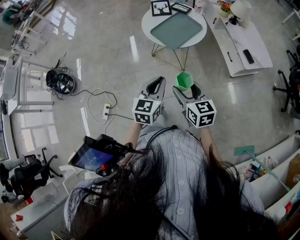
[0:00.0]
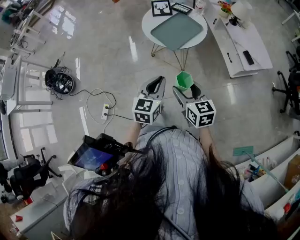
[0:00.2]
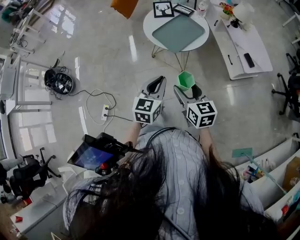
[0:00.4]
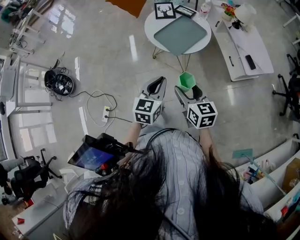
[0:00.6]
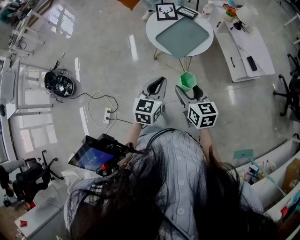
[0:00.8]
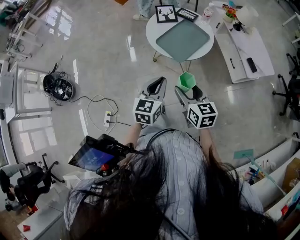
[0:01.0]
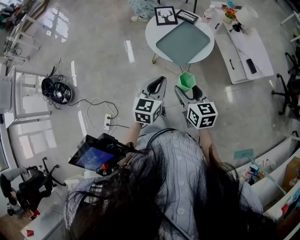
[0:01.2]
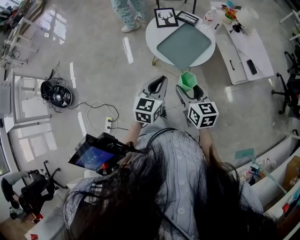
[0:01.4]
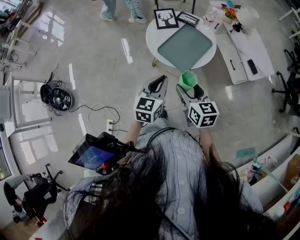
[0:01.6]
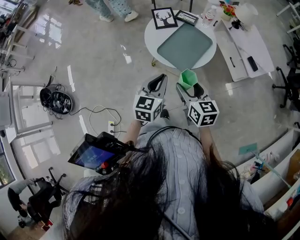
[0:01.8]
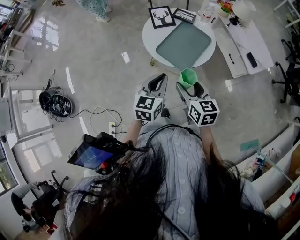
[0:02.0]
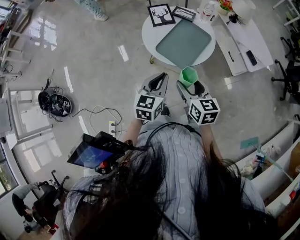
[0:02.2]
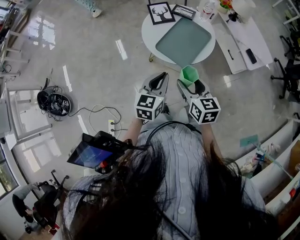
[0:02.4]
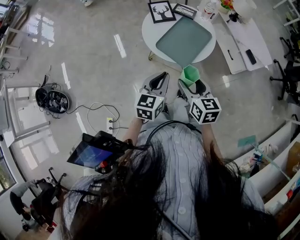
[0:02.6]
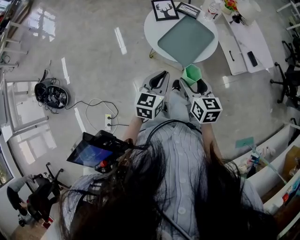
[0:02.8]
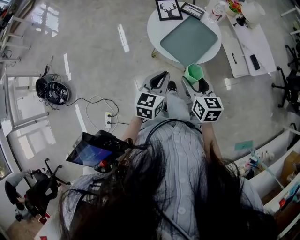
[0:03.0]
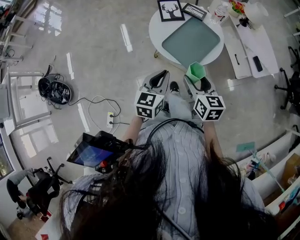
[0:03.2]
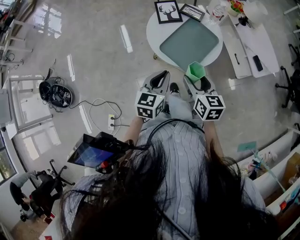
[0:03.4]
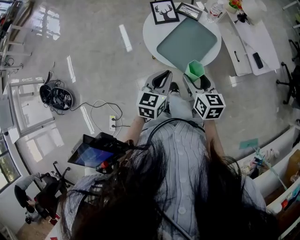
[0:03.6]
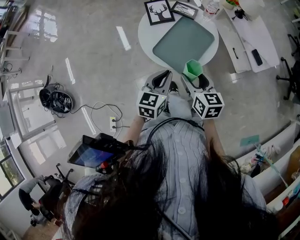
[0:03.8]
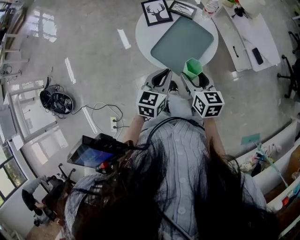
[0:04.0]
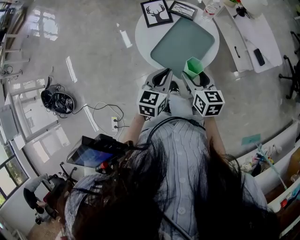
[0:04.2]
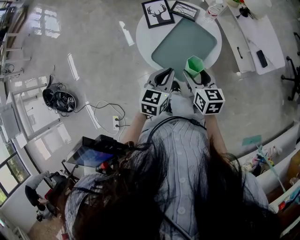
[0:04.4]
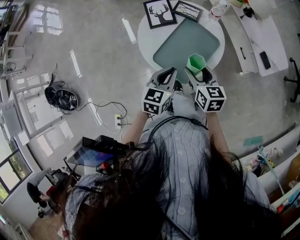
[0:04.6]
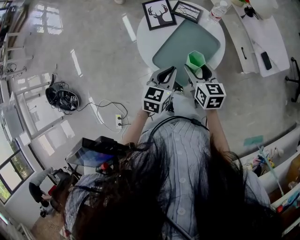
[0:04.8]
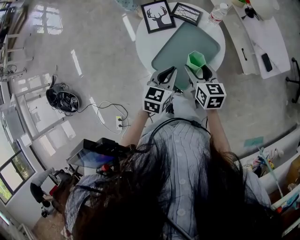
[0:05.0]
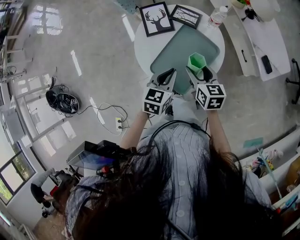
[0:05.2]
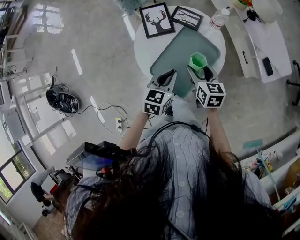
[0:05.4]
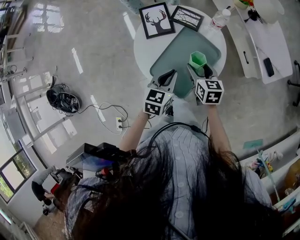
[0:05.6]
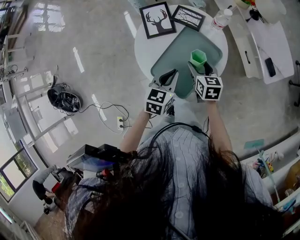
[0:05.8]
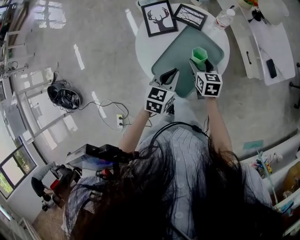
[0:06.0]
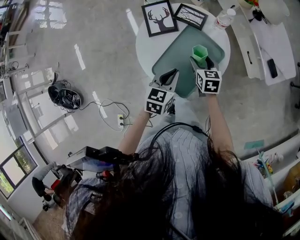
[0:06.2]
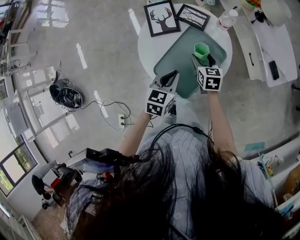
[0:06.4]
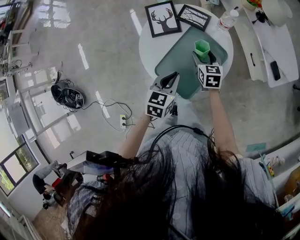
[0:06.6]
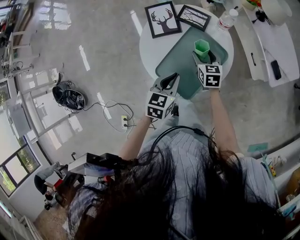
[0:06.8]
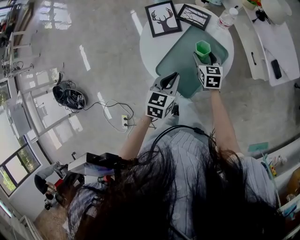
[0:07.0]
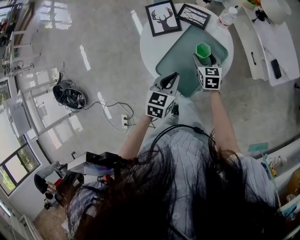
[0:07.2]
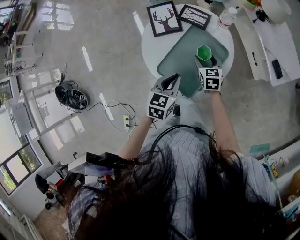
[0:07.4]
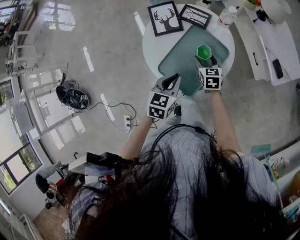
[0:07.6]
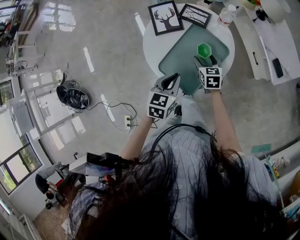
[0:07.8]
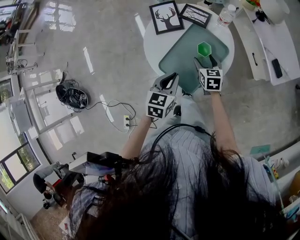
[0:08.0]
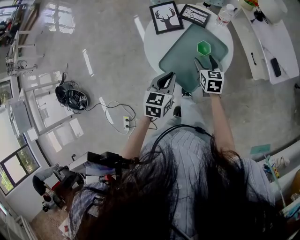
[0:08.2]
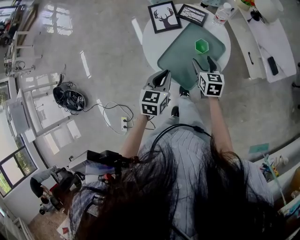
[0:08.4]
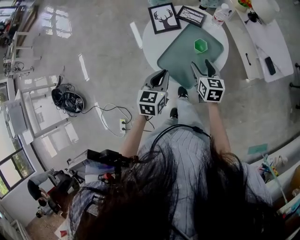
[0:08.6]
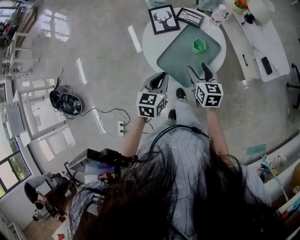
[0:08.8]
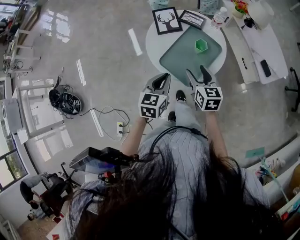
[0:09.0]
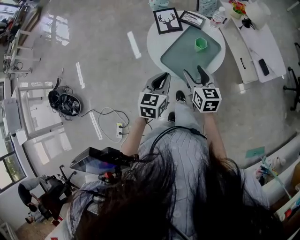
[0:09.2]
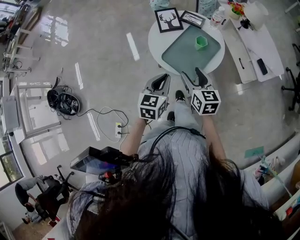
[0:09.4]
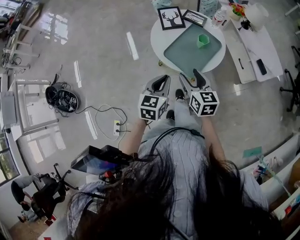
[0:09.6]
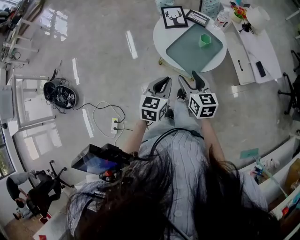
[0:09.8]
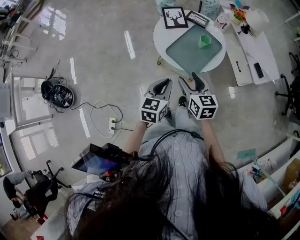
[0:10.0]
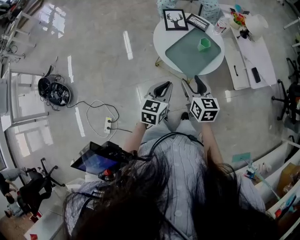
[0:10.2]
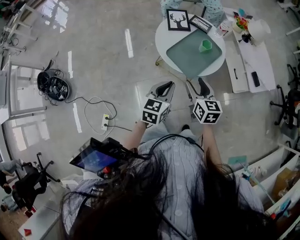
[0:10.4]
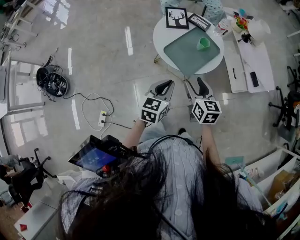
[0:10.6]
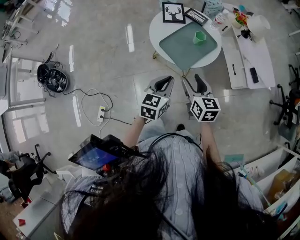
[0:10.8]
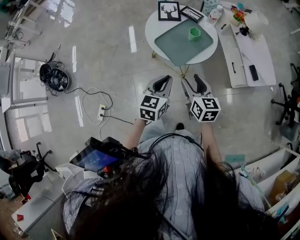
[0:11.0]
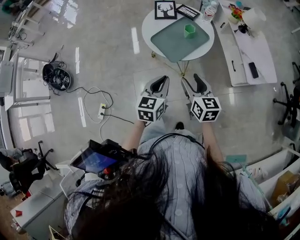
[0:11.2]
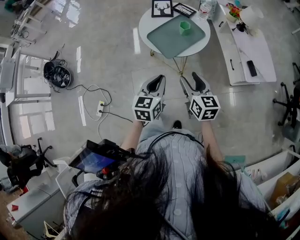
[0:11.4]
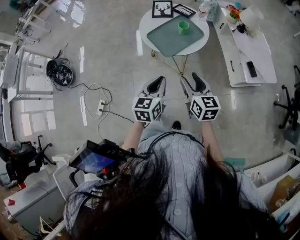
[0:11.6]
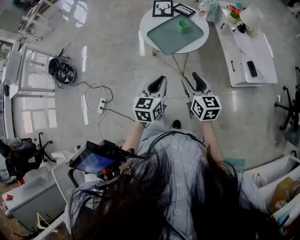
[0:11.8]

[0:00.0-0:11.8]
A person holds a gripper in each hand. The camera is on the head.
0.0 to 1.4 s: Both grippers travel together forward, about 15 cm.
1.4 to 3.0 s: The right gripper moves forward, about 5 cm. Meanwhile the left gripper moves about 5 cm.
3.0 to 4.4 s: The left gripper goes some 15 cm forward and to the right, while the right gripper is displaced forward by some 15 cm.
4.4 to 6.0 s: The left gripper heads forward and downward, covering about 10 cm; the right gripper shifts some 20 cm forward and downward.
6.0 to 7.4 s: There are only small adjustments of the grippers.
7.4 to 8.8 s: The right gripper travels backward and upward by some 15 cm; the left gripper moves backward and to the left, some 10 cm.
8.8 to 10.4 s: The right gripper shifts roughly 15 cm backward and upward, while the left gripper heads backward, covering roughly 15 cm.
10.4 to 11.8 s: The grippers both shift to the right and backward by roughly 20 cm.

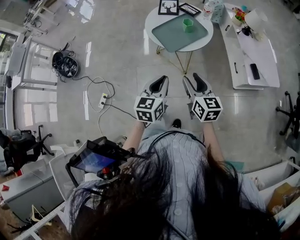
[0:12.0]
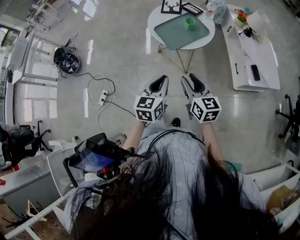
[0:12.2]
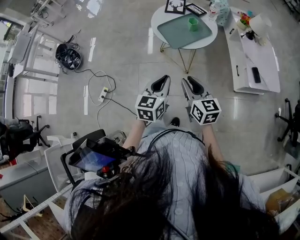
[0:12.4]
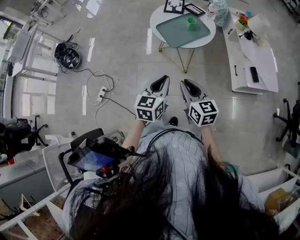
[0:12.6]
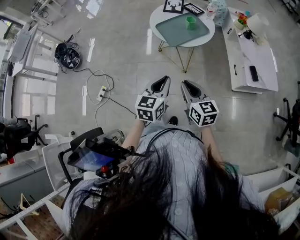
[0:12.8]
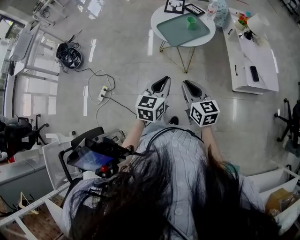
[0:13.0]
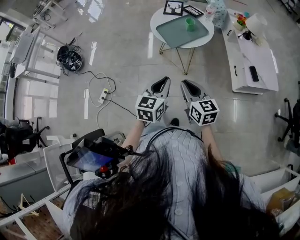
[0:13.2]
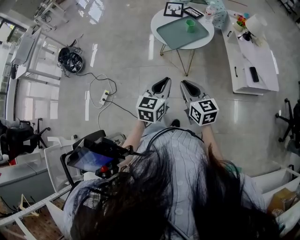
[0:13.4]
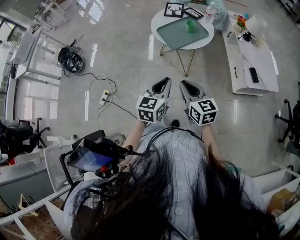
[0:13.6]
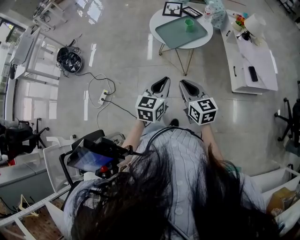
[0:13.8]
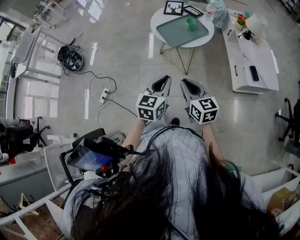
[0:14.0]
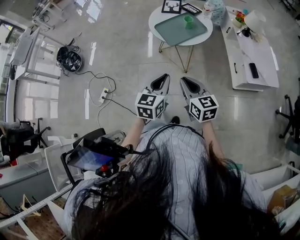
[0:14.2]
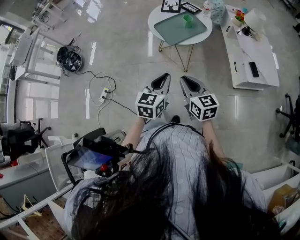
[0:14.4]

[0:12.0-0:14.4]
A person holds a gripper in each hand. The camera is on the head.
12.0 to 13.2 s: The grippers both shift backward by approximately 10 cm. The right gripper closes up.
13.2 to 14.4 s: Neither gripper changes place.

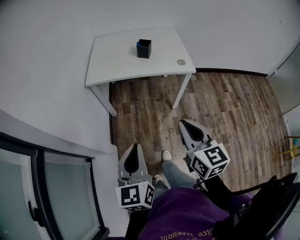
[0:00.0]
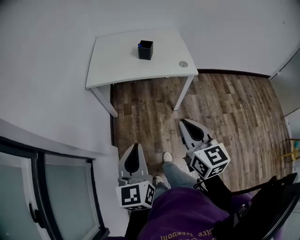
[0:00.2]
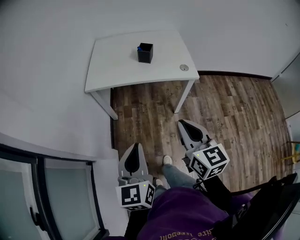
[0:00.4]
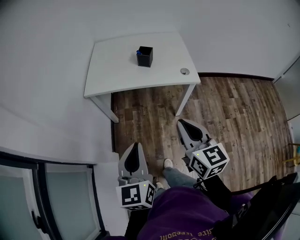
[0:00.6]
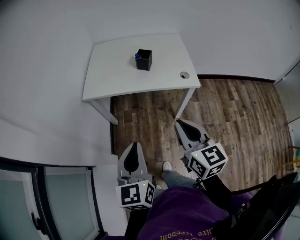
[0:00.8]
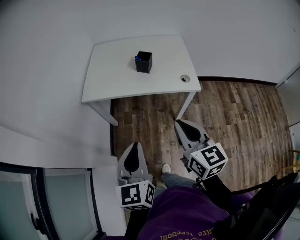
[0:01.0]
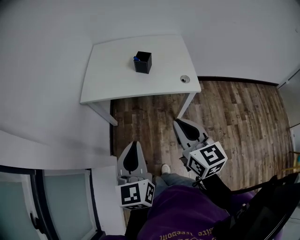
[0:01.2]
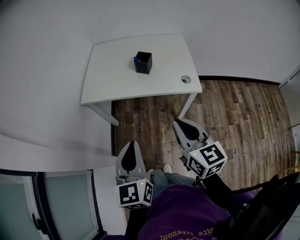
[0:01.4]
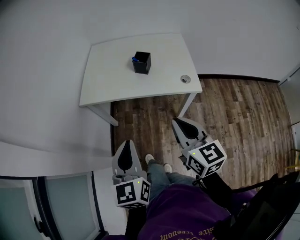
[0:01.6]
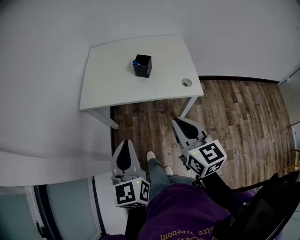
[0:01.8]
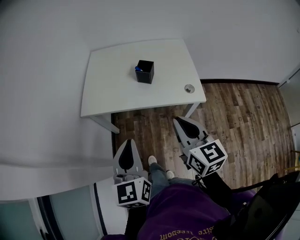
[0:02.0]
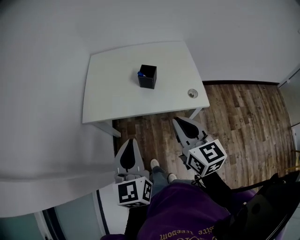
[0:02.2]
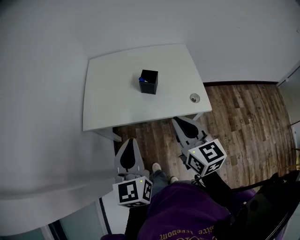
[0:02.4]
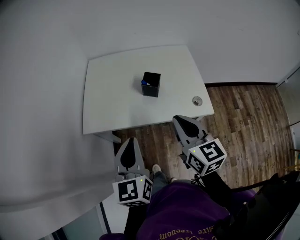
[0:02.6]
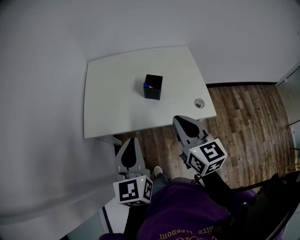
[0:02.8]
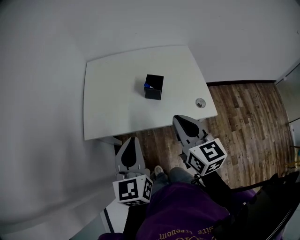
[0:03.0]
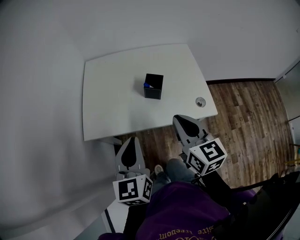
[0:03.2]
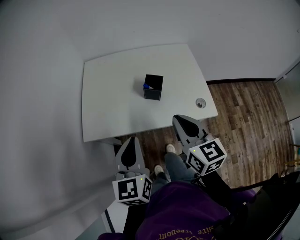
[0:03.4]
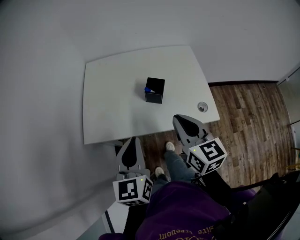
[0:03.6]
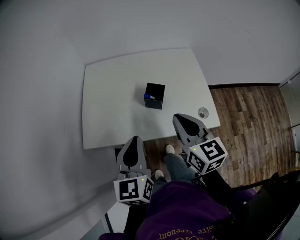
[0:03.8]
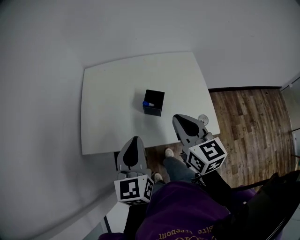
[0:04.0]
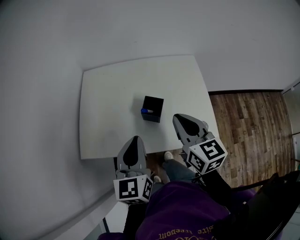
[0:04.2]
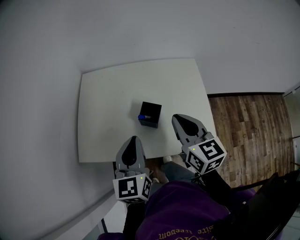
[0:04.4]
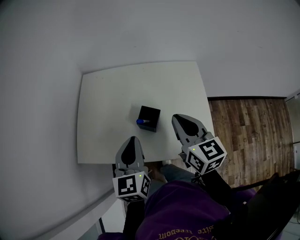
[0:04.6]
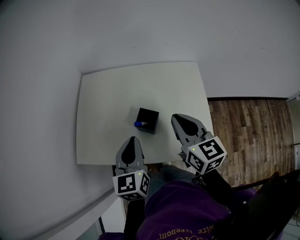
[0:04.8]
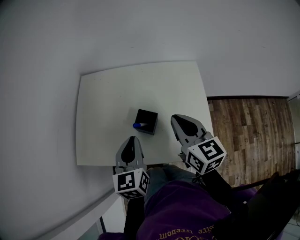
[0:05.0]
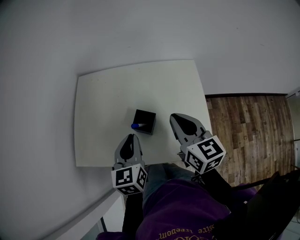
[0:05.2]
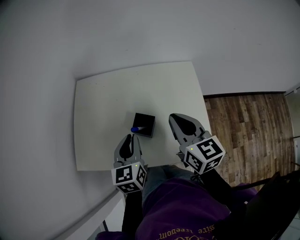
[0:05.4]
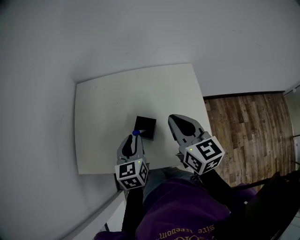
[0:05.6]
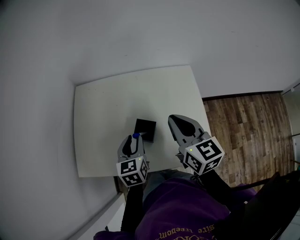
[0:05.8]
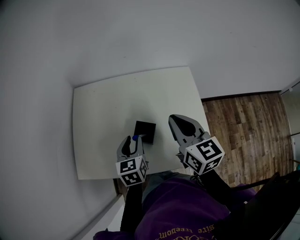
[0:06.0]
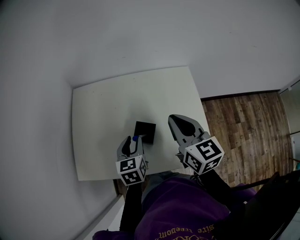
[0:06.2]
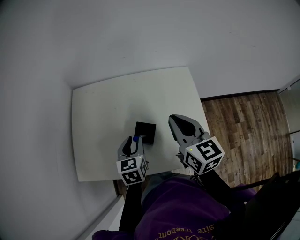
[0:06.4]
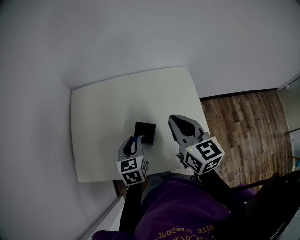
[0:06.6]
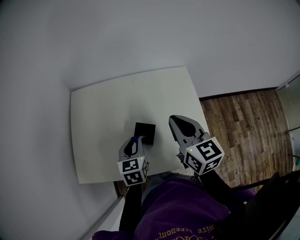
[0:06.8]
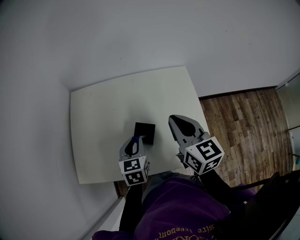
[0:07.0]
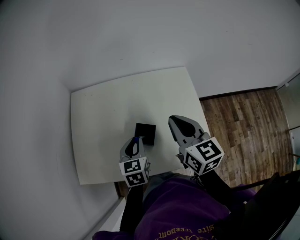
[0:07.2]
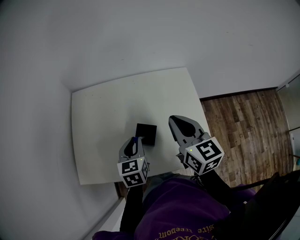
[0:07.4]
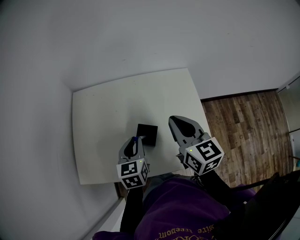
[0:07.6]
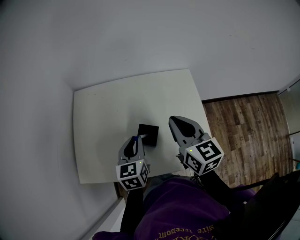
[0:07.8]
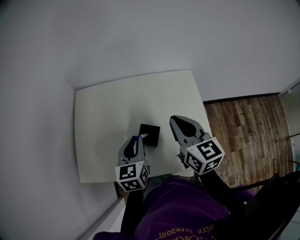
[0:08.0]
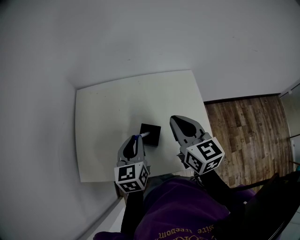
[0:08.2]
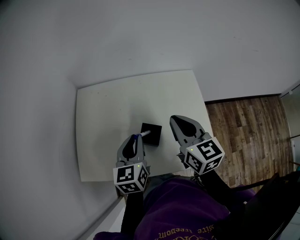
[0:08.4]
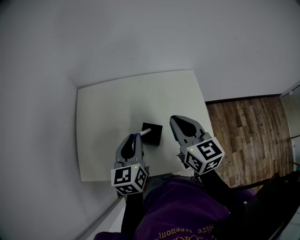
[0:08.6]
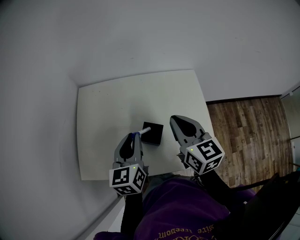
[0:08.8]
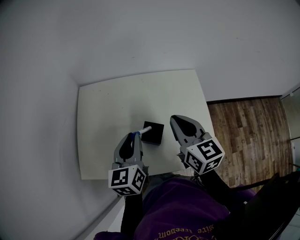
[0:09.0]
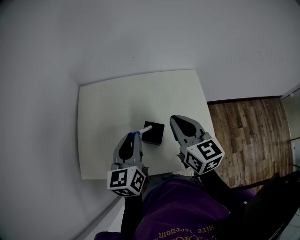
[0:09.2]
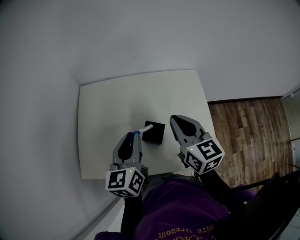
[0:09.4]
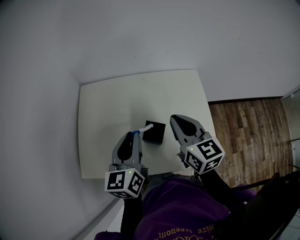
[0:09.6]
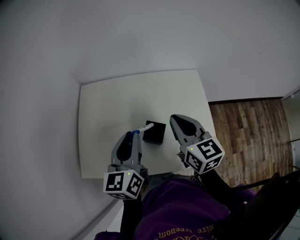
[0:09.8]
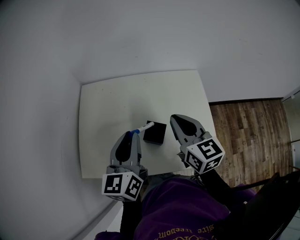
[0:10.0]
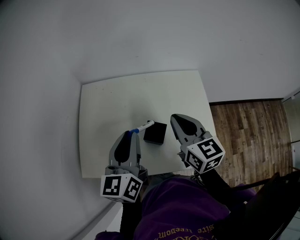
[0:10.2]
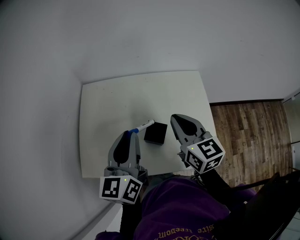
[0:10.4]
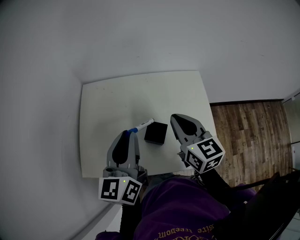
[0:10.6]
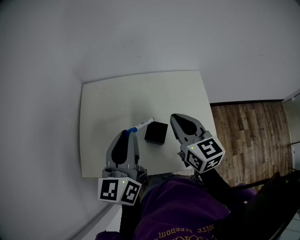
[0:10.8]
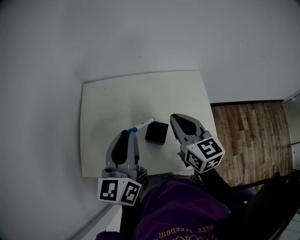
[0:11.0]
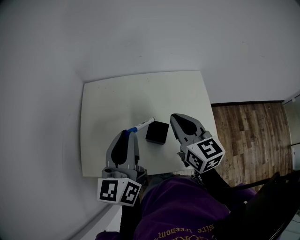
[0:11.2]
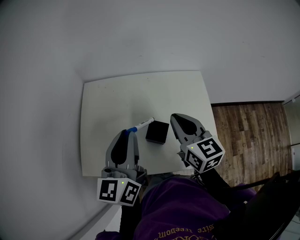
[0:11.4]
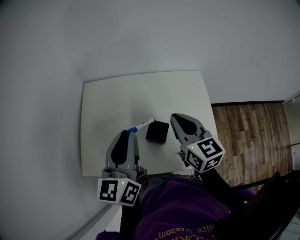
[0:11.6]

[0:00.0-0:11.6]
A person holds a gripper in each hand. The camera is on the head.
0.0 to 1.4 s: Both grippers move forward and to the right, some 20 cm.
1.4 to 2.8 s: The two grippers go some 20 cm forward.
2.8 to 4.4 s: The left gripper goes some 20 cm forward and to the right; the right gripper travels forward by some 15 cm.
4.4 to 5.8 s: The left gripper moves downward and forward, approximately 15 cm, and opens its fingers; the right gripper is displaced forward by some 5 cm.
5.8 to 7.2 s: The grippers move only a little.
7.2 to 8.8 s: The left gripper shifts roughly 10 cm upward.
8.8 to 10.2 s: The left gripper moves upward, about 5 cm.
10.2 to 11.6 s: The grippers make only small movements.
